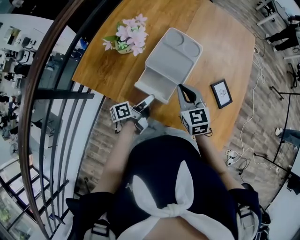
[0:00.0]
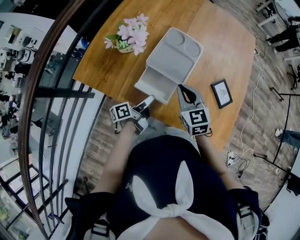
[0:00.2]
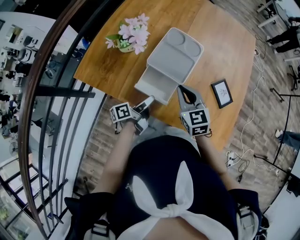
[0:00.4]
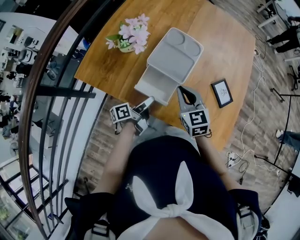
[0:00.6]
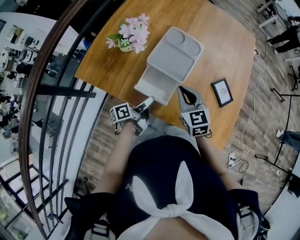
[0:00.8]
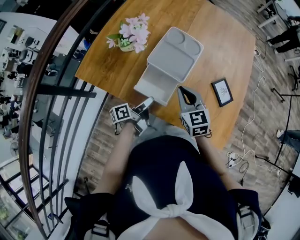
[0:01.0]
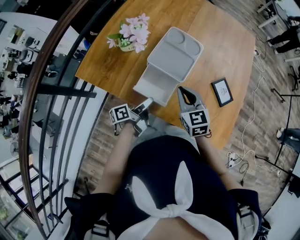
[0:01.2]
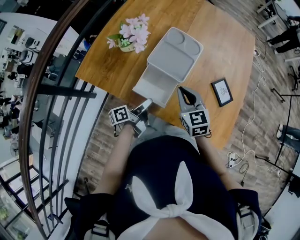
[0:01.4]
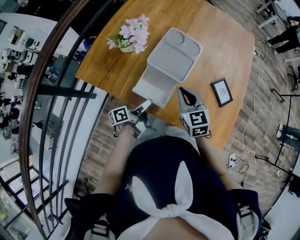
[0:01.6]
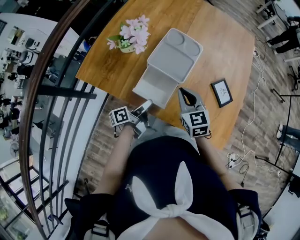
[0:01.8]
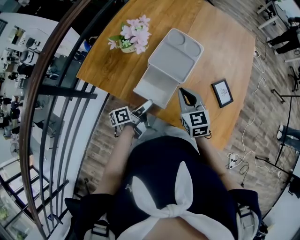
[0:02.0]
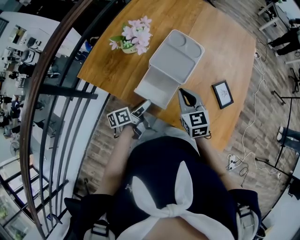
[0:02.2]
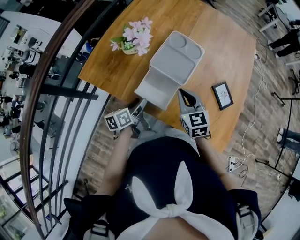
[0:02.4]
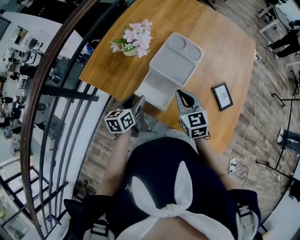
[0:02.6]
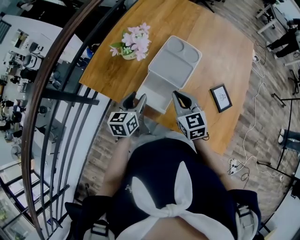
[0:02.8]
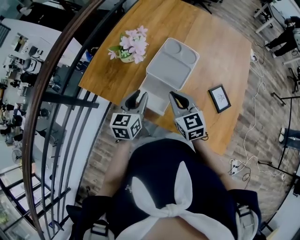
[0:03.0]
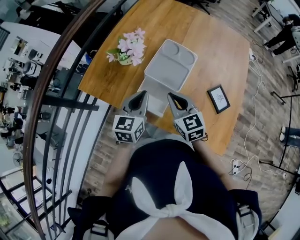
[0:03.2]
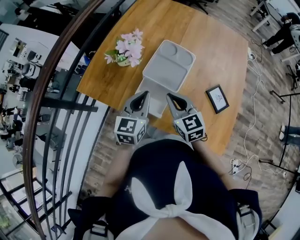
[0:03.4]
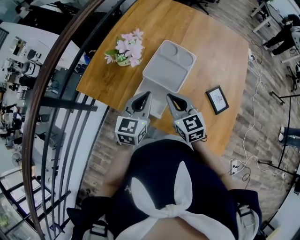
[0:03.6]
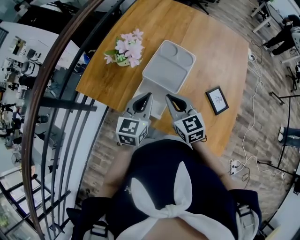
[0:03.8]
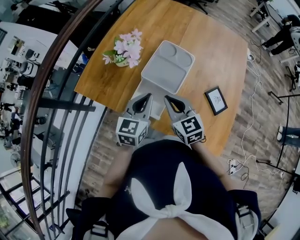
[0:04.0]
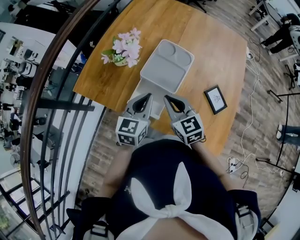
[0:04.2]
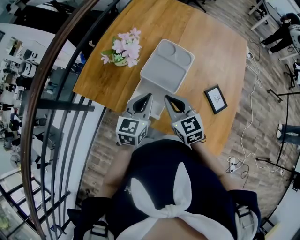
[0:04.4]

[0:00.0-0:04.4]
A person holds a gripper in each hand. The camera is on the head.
0.0 to 1.4 s: There are only small adjustments of the grippers.
1.4 to 3.0 s: The left gripper travels upward by about 15 cm, and twists approximately 60 degrees clockwise, seen from behind.
3.0 to 4.4 s: The left gripper heads to the right, covering roughly 5 cm, and closes up.

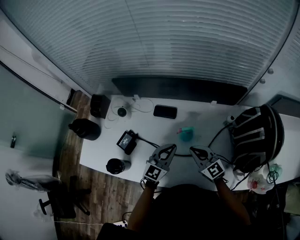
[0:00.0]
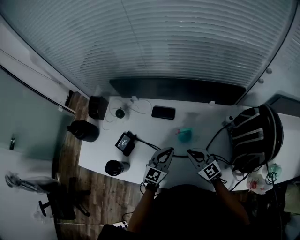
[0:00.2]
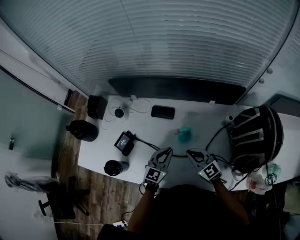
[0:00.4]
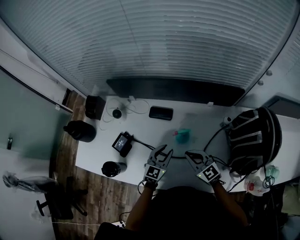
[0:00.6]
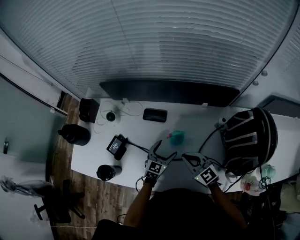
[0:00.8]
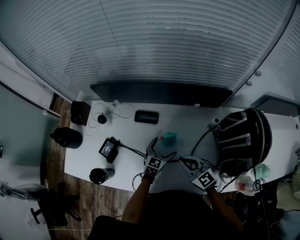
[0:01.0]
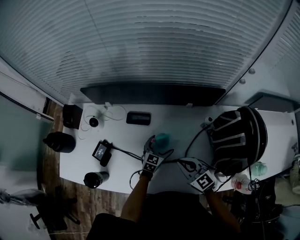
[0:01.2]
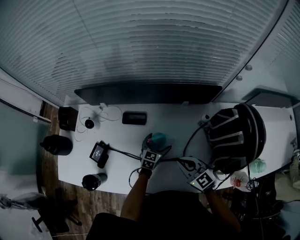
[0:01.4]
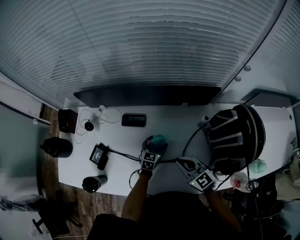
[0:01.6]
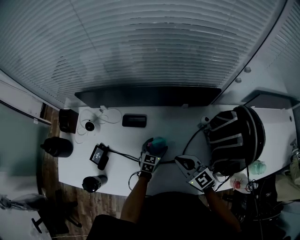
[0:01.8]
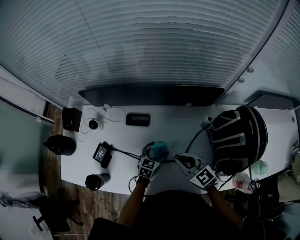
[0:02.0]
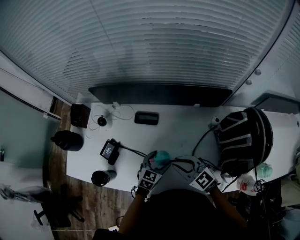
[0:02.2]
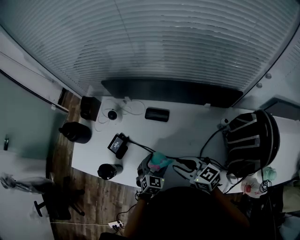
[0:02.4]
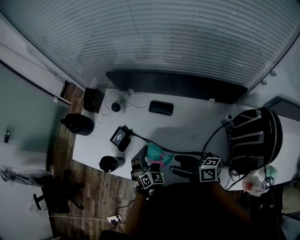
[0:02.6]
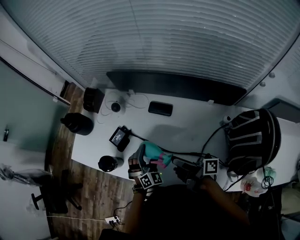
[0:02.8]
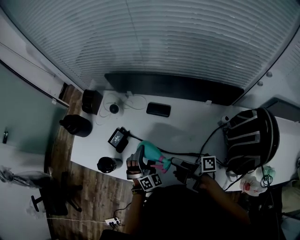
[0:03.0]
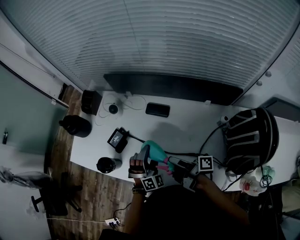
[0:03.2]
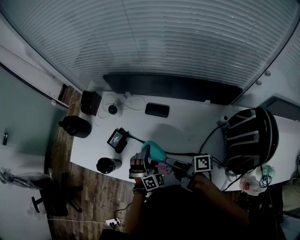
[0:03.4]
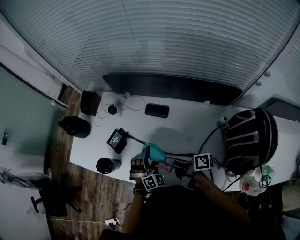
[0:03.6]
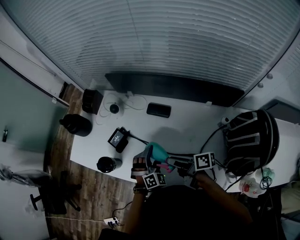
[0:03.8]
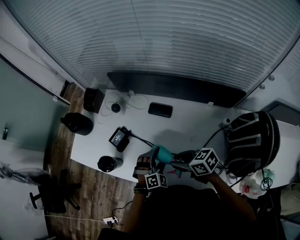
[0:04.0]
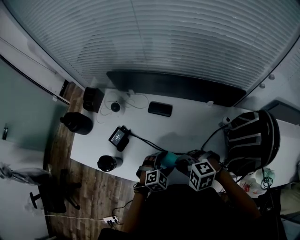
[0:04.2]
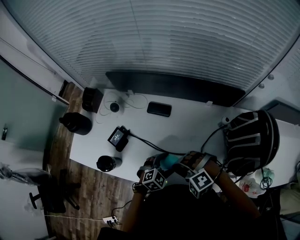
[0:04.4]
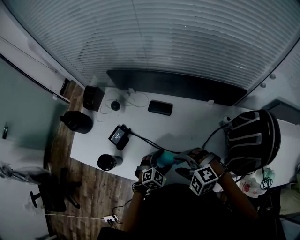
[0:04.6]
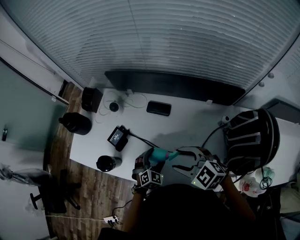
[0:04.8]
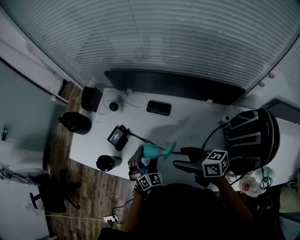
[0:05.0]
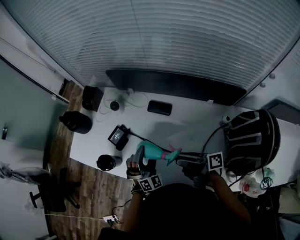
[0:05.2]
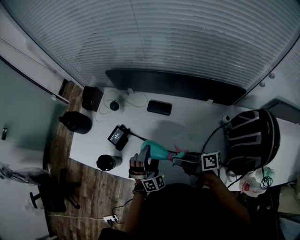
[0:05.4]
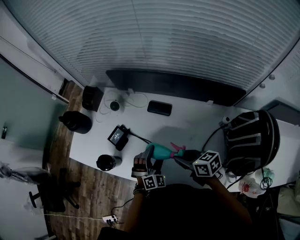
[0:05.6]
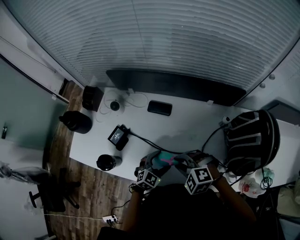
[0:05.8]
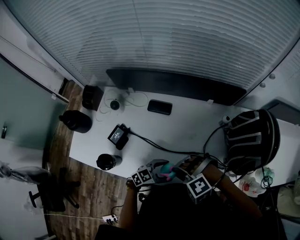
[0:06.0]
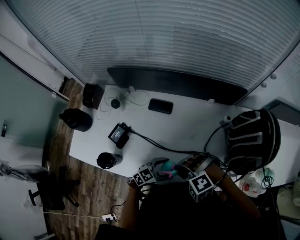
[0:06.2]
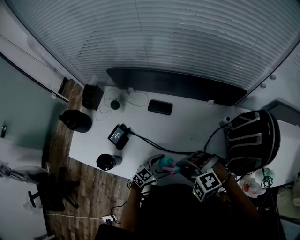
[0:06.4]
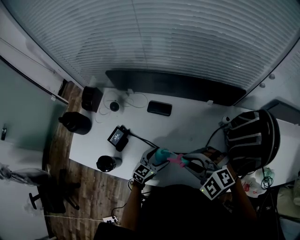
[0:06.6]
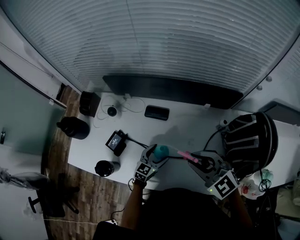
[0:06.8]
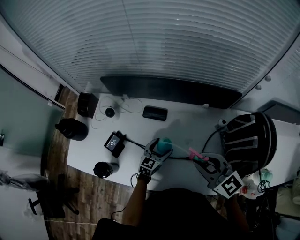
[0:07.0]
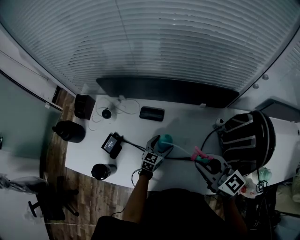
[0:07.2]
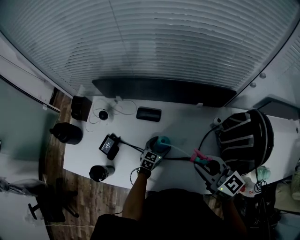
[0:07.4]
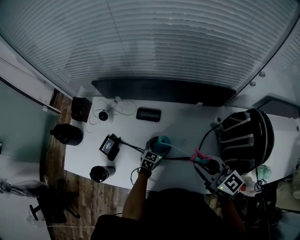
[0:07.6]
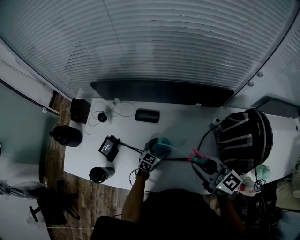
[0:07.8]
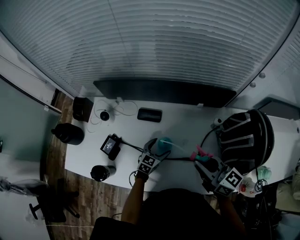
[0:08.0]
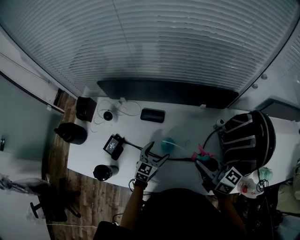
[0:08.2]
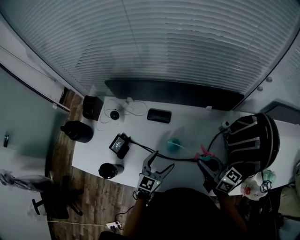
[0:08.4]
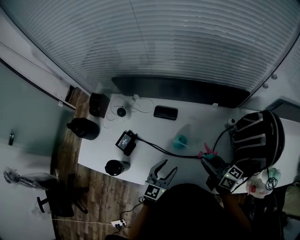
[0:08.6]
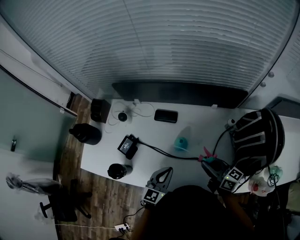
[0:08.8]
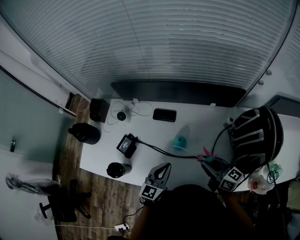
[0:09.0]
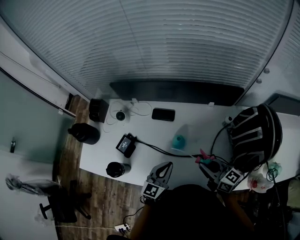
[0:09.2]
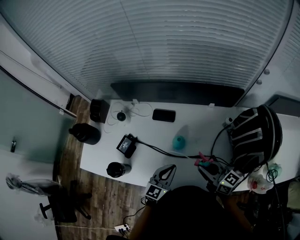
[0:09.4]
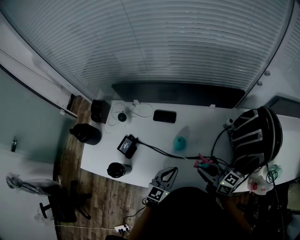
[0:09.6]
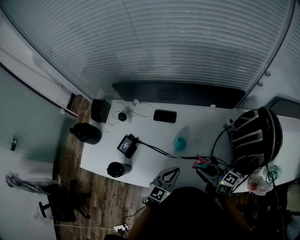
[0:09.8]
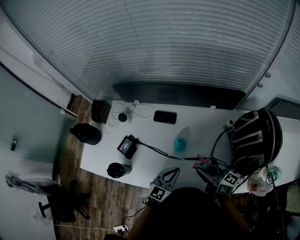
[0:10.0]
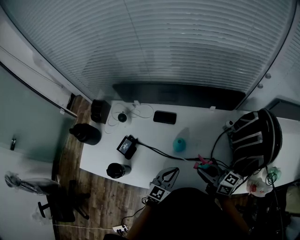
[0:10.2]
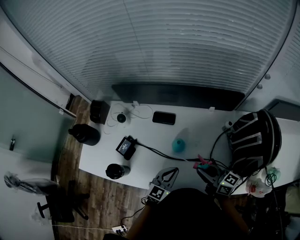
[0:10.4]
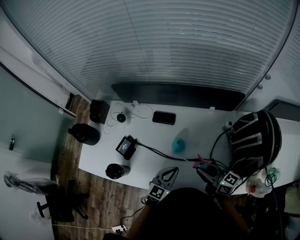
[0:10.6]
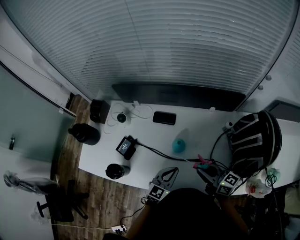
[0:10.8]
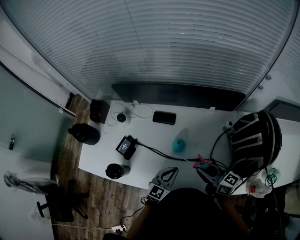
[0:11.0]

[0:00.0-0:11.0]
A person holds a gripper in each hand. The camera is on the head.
0.0 to 1.6 s: The left gripper shifts some 25 cm downward, forward and to the right, rotates about 30 degrees, and opens, while the right gripper is displaced to the right by about 5 cm.
1.6 to 3.2 s: The right gripper shifts by some 15 cm, rotates around the line of its fingers by about 90 degrees, clockwise from behind, and opens; the left gripper moves approximately 25 cm, and rotates around the line of its fingers by approximately 50 degrees, clockwise from behind.
3.2 to 4.8 s: The right gripper travels upward by about 5 cm, rolls counterclockwise, seen from behind, by some 100 degrees, and closes, then opens again, while the left gripper goes some 5 cm downward, and turns by some 30 degrees.
4.8 to 6.2 s: The left gripper moves about 10 cm upward and comes back, and swivels some 50 degrees; the right gripper moves roughly 10 cm, rotates roughly 50 degrees, and closes its fingers.
6.2 to 7.8 s: The left gripper changes place by some 20 cm, and swivels some 30 degrees, while the right gripper moves approximately 20 cm, and angles its fingers upward, by about 50 degrees.
7.8 to 9.4 s: The right gripper shifts approximately 10 cm downward. Meanwhile the left gripper goes about 20 cm upward and backward, turns by approximately 20 degrees, and closes.
9.4 to 11.0 s: There are only small adjustments of the grippers.

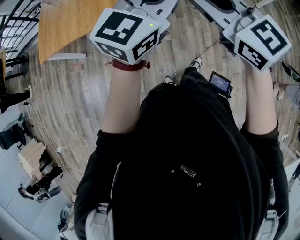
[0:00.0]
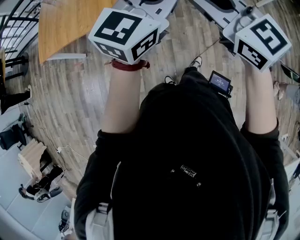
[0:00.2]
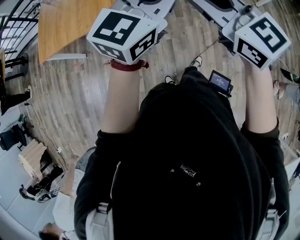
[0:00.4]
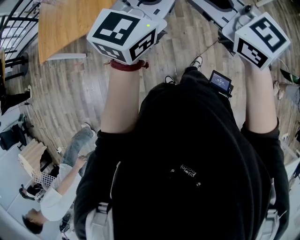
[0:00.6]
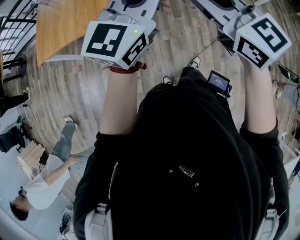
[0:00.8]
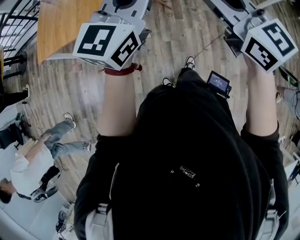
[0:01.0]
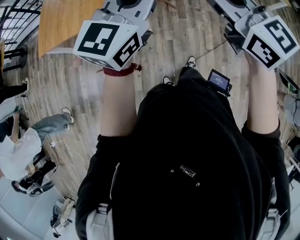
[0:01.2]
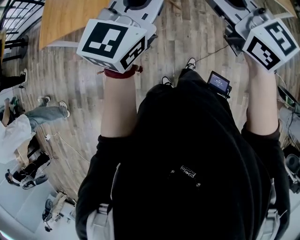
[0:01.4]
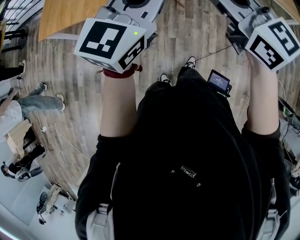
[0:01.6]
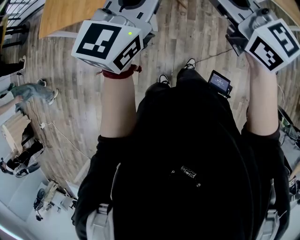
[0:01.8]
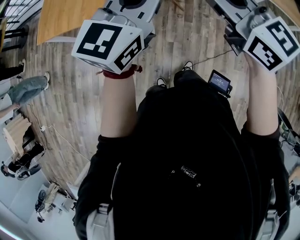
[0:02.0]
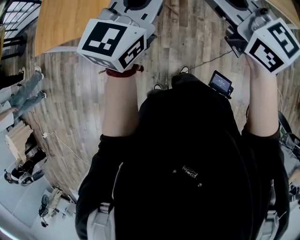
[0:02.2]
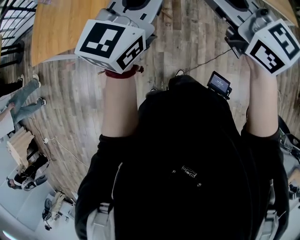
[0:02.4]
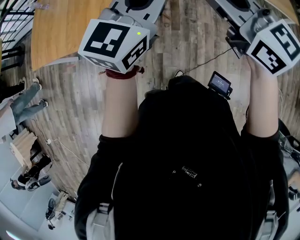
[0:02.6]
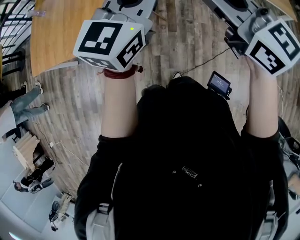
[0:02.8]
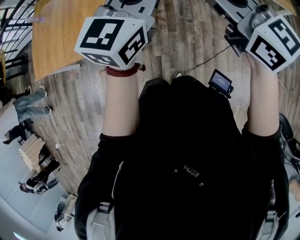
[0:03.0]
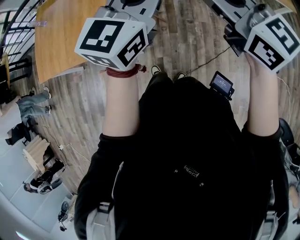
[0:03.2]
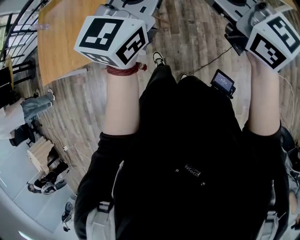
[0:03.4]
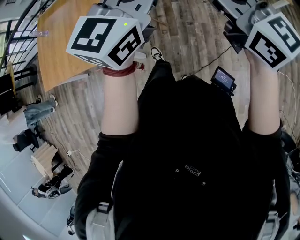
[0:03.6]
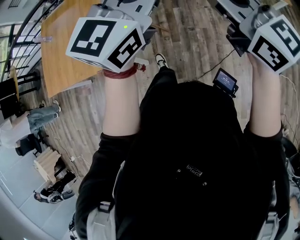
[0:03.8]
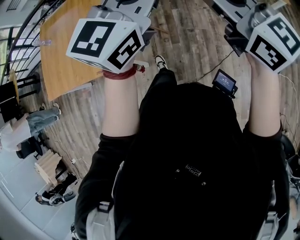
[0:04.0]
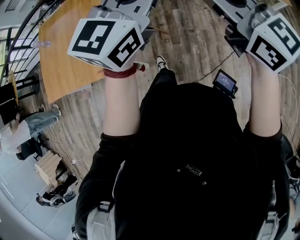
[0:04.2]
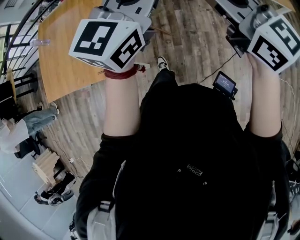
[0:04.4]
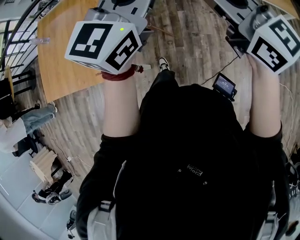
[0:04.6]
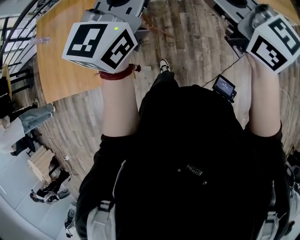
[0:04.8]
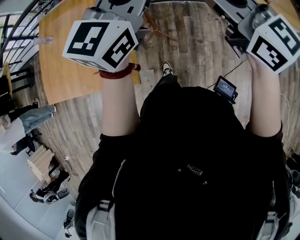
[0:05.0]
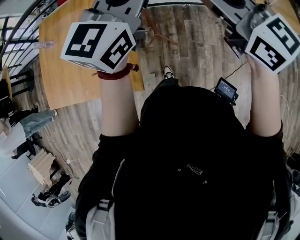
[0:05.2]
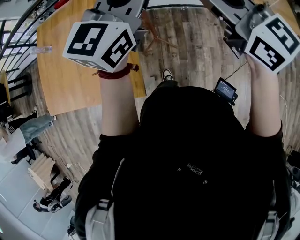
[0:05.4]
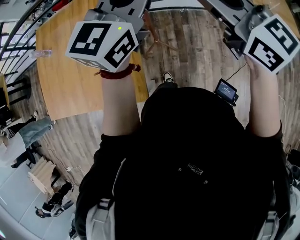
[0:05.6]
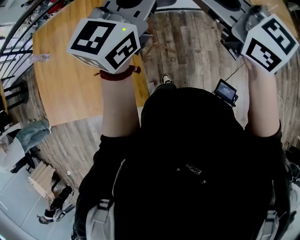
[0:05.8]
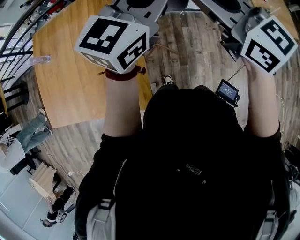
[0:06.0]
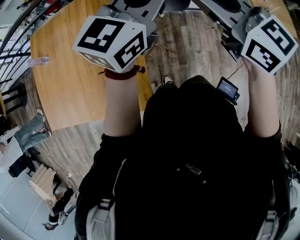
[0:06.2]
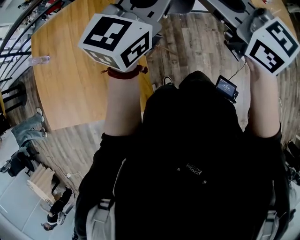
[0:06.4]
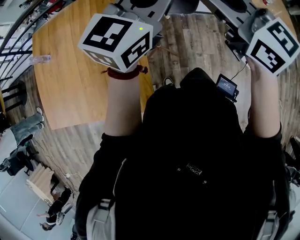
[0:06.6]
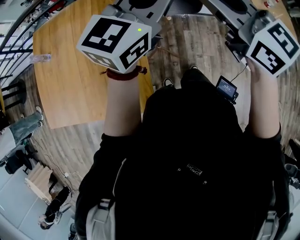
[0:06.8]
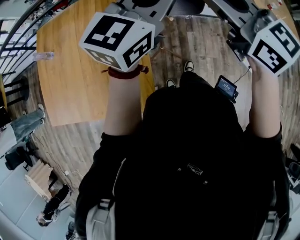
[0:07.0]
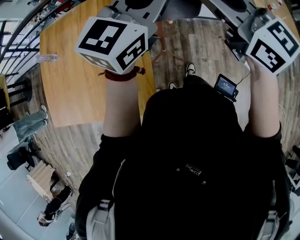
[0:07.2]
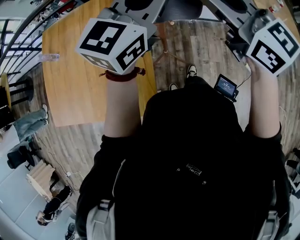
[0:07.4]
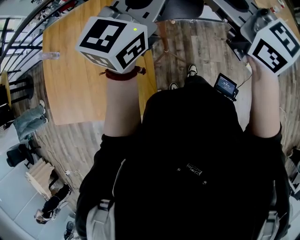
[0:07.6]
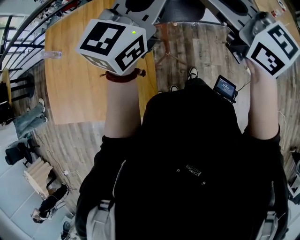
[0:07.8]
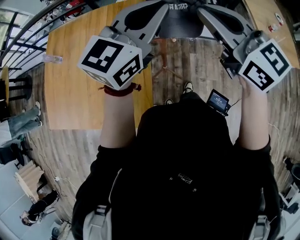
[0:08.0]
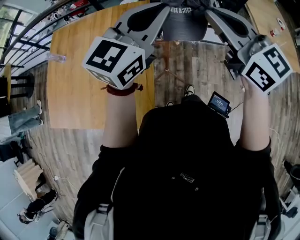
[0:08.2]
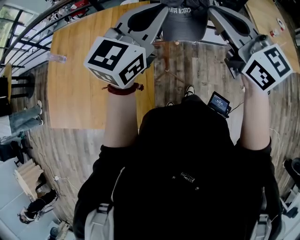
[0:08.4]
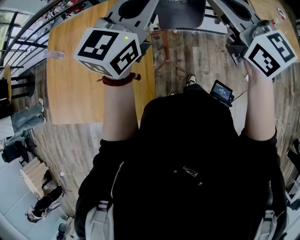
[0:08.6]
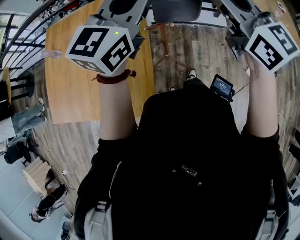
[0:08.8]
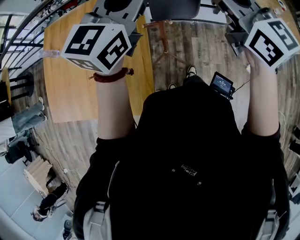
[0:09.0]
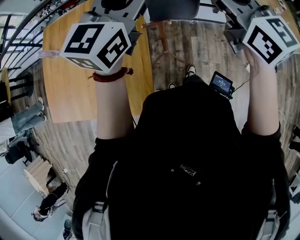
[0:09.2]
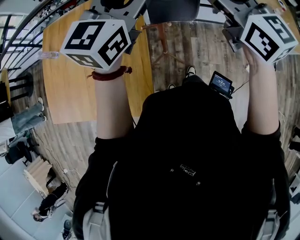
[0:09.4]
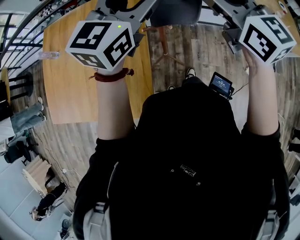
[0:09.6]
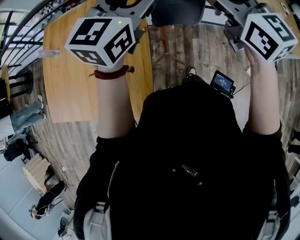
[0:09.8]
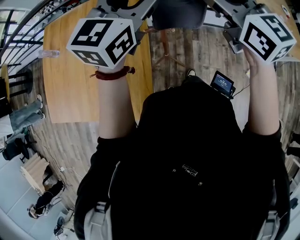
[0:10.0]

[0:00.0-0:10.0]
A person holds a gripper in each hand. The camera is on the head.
0.0 to 1.4 s: The left gripper shifts some 5 cm to the left. Meanwhile the right gripper ends up roughly 5 cm from where it was.
1.4 to 2.8 s: The left gripper is displaced forward and to the right by roughly 25 cm, while the right gripper goes roughly 25 cm to the right and forward.
2.8 to 4.2 s: The two grippers go roughly 10 cm to the right.
4.2 to 5.8 s: The two grippers go approximately 35 cm forward and to the left.
5.8 to 7.2 s: The grippers make only small movements.
7.2 to 8.6 s: The left gripper moves approximately 5 cm.
8.6 to 10.0 s: The left gripper opens up, while the right gripper opens.
